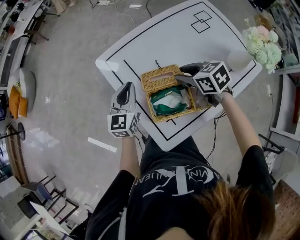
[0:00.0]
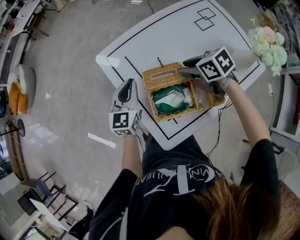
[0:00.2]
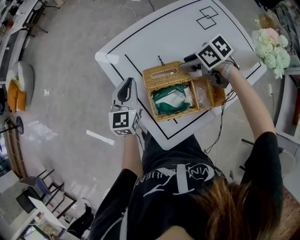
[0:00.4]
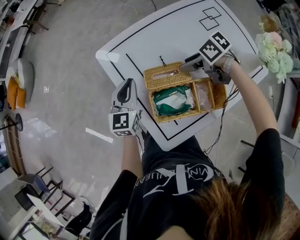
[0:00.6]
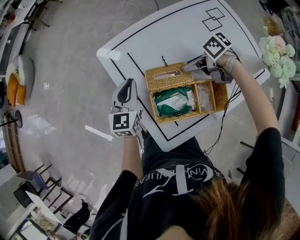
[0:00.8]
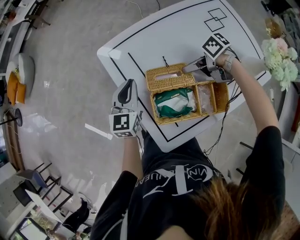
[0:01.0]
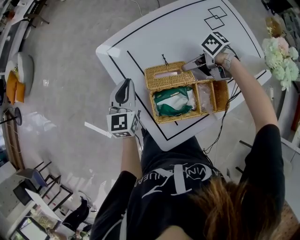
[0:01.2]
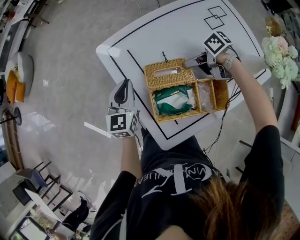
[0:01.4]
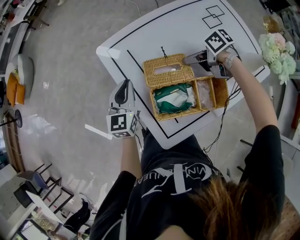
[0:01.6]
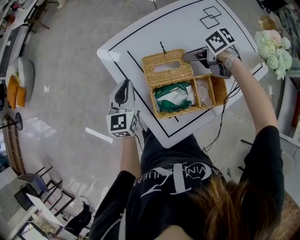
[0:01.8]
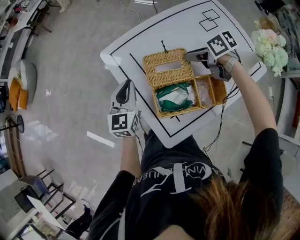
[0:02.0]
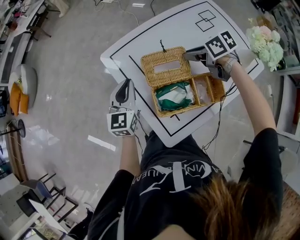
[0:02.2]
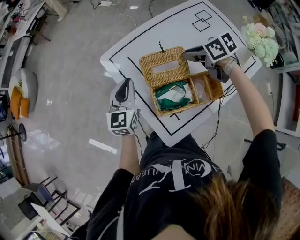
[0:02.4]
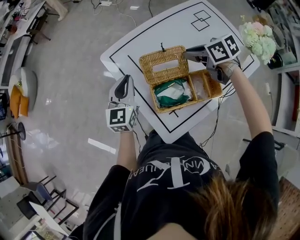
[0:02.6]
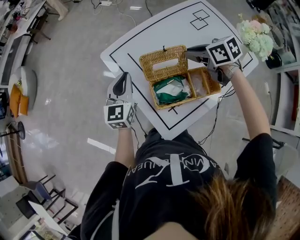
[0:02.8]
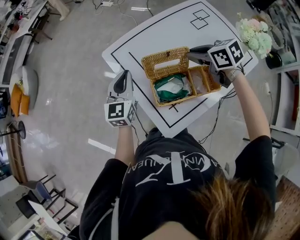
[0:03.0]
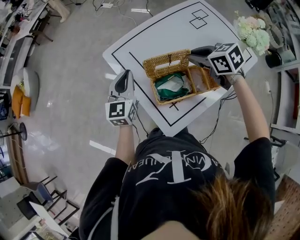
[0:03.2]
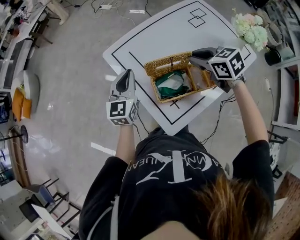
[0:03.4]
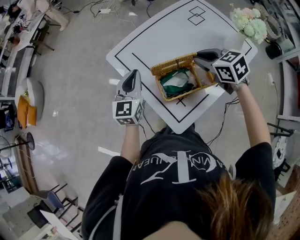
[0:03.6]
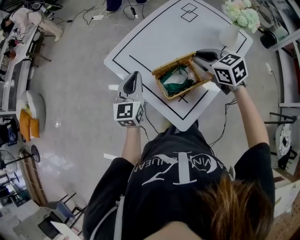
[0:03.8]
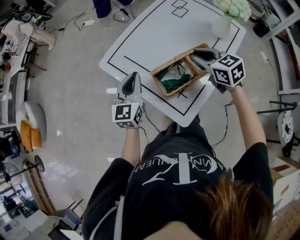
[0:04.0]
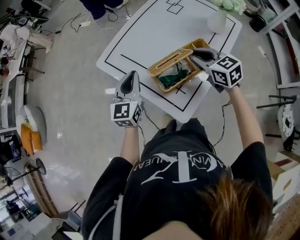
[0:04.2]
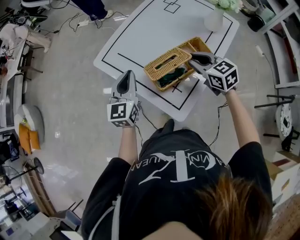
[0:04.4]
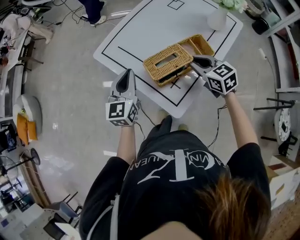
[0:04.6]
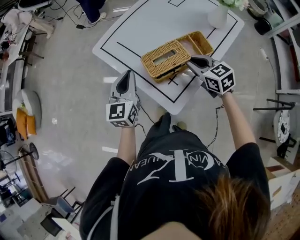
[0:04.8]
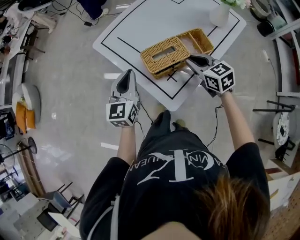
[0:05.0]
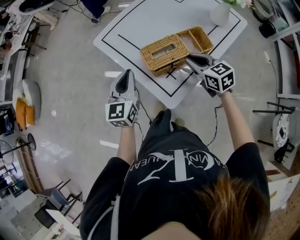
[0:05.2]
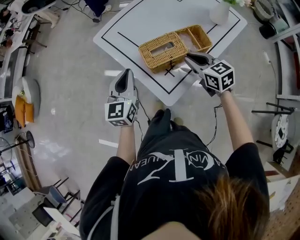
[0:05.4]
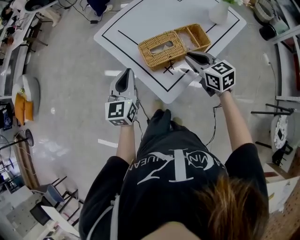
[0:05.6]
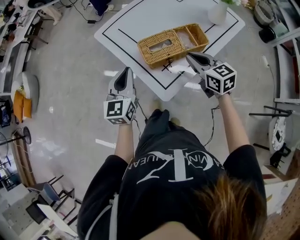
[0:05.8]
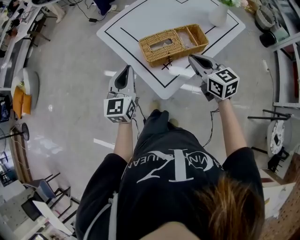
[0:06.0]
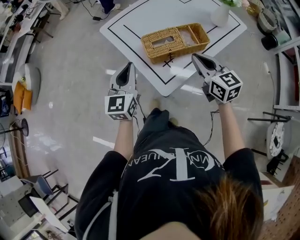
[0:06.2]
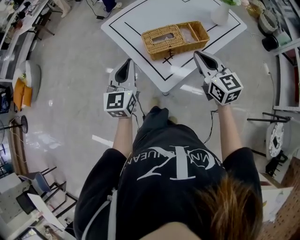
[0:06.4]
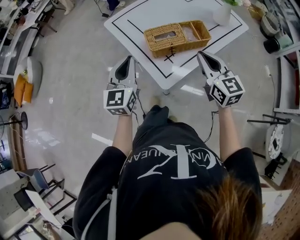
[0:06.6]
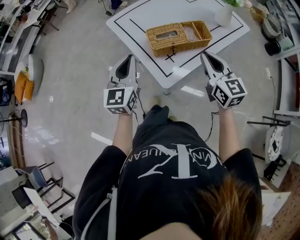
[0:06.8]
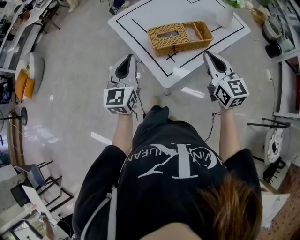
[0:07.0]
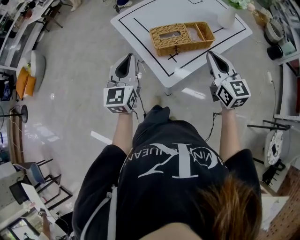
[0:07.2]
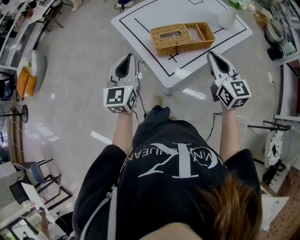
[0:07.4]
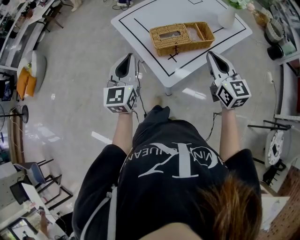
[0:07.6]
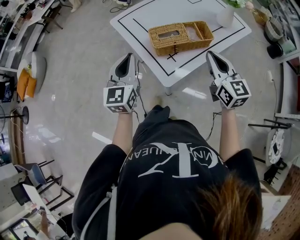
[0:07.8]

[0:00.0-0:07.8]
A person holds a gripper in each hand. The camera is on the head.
0:00.0 to 0:01.6: The right gripper is displaced downward by some 5 cm, changes its angle by approximately 40 degrees, and opens, then closes again.
0:01.6 to 0:03.2: The left gripper shifts roughly 10 cm upward; the right gripper heads upward and backward, covering about 15 cm, and turns by some 40 degrees.
0:03.2 to 0:04.6: The right gripper is displaced backward and downward by some 15 cm, and changes its angle by approximately 30 degrees, while the left gripper shifts approximately 5 cm backward.
0:04.6 to 0:06.2: The right gripper goes approximately 10 cm backward and upward. The left gripper shifts roughly 15 cm backward.
0:06.2 to 0:07.8: The left gripper ends up some 5 cm from where it was, while the right gripper ends up approximately 5 cm from where it was.

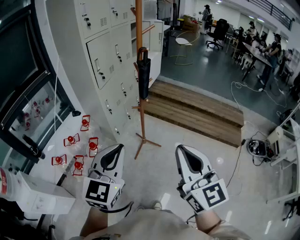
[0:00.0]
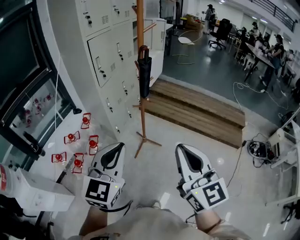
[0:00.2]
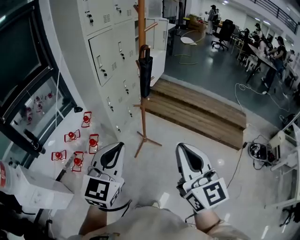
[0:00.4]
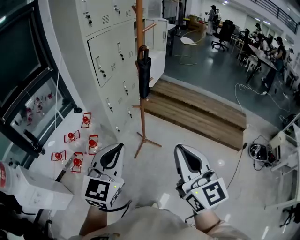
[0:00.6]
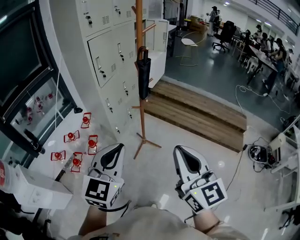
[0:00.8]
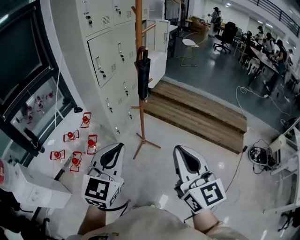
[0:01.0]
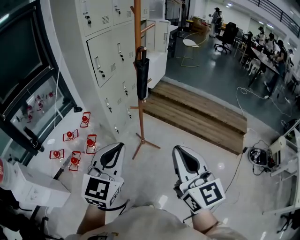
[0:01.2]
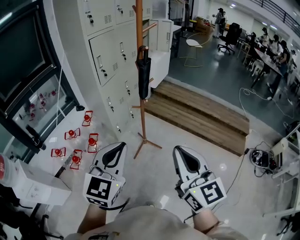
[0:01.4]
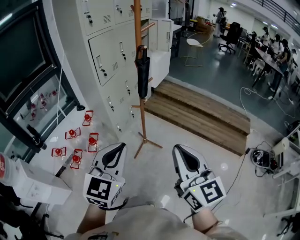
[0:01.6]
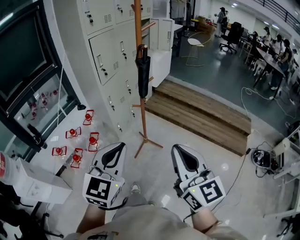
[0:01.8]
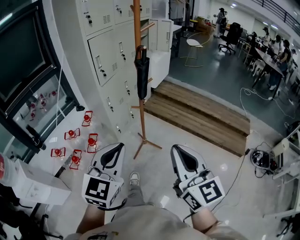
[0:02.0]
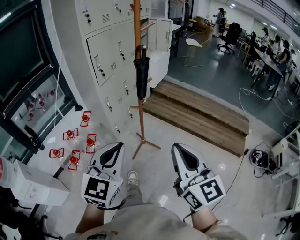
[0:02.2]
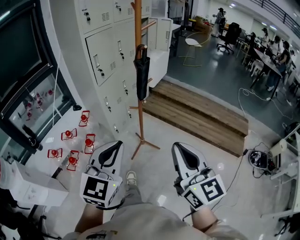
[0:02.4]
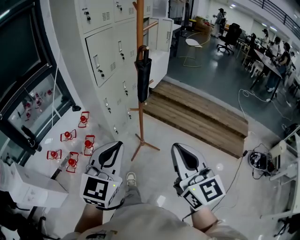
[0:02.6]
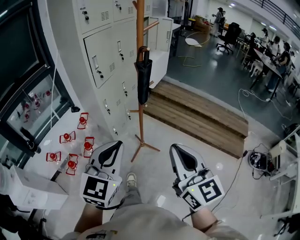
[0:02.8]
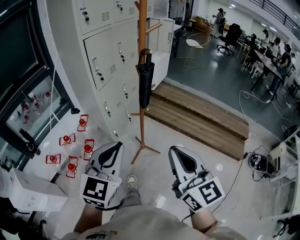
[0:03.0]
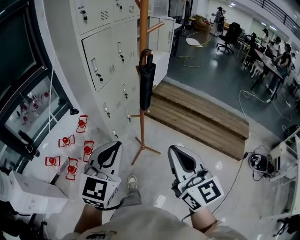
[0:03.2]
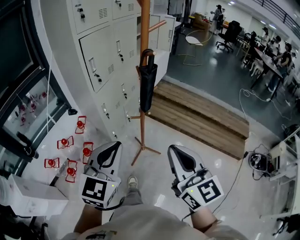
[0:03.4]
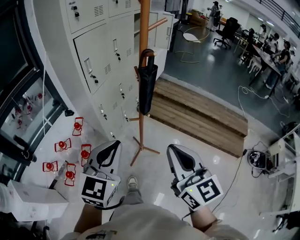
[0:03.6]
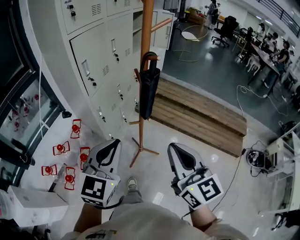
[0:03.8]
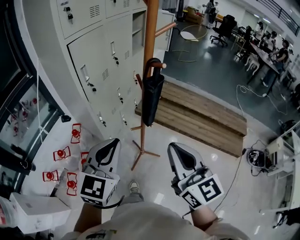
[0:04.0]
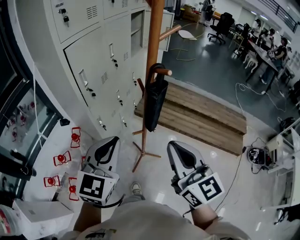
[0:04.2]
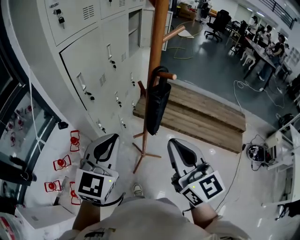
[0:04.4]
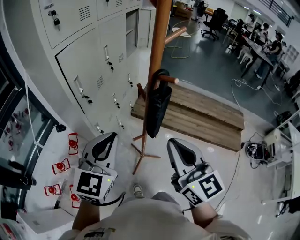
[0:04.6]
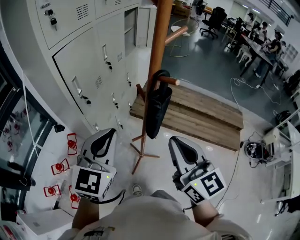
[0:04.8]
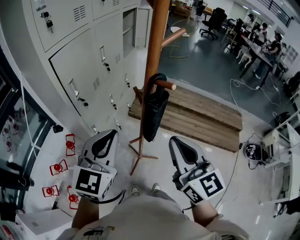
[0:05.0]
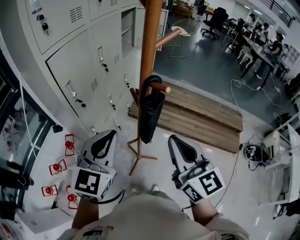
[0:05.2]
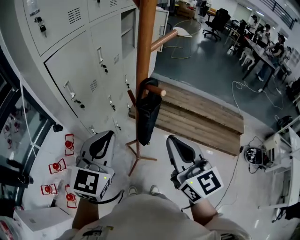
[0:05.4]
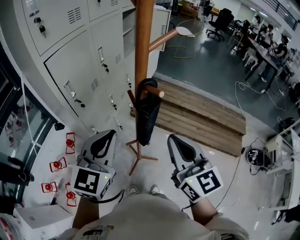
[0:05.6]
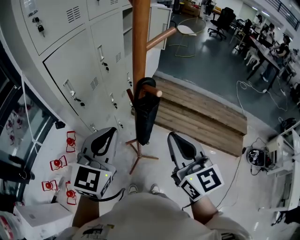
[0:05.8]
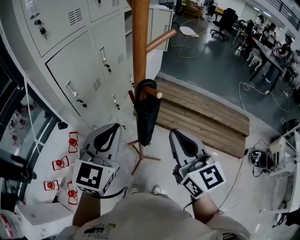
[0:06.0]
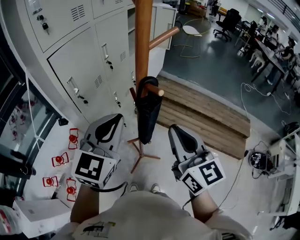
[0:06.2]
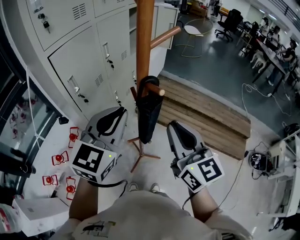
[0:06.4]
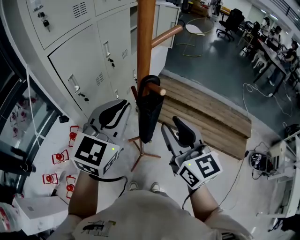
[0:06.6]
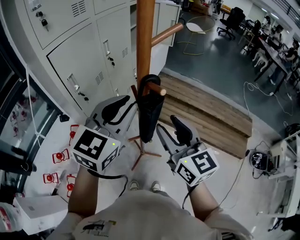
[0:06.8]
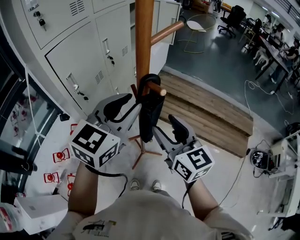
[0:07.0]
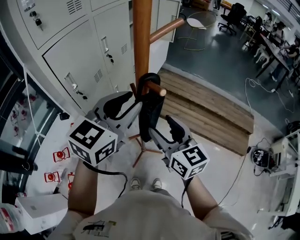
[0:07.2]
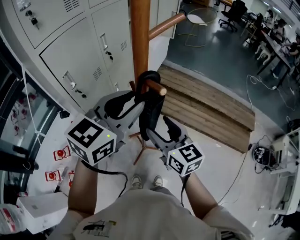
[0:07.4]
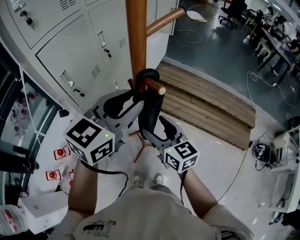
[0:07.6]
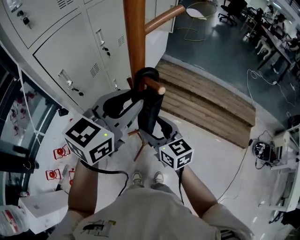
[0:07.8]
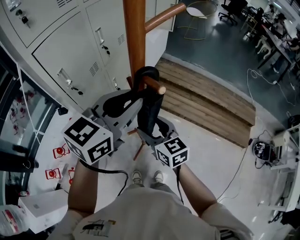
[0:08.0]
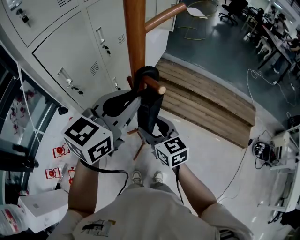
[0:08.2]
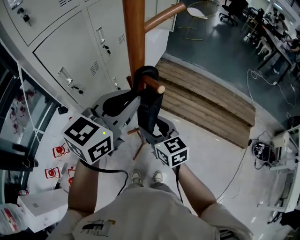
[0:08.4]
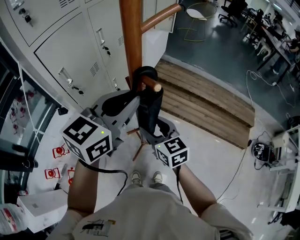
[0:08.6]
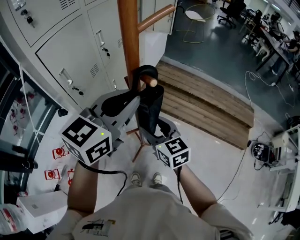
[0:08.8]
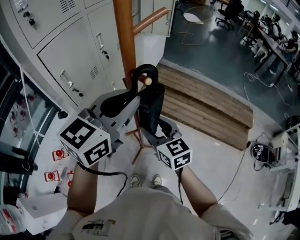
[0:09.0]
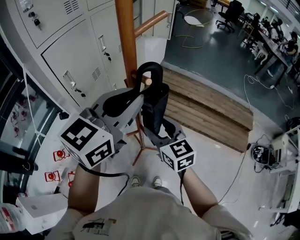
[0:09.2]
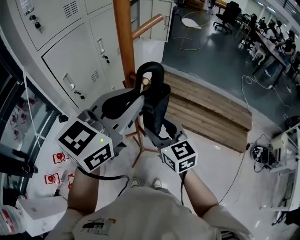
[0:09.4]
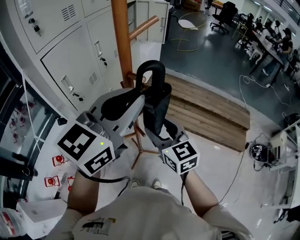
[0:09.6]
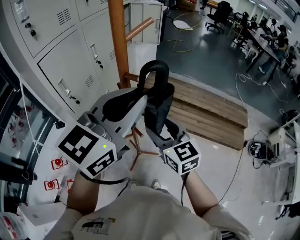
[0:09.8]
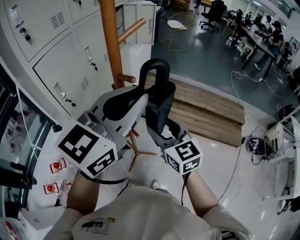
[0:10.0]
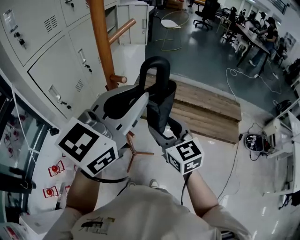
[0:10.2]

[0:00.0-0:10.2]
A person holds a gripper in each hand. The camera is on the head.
0:00.0 to 0:01.4: The grippers both shift to the right by approximately 5 cm.
0:01.4 to 0:03.0: Both grippers move forward, approximately 10 cm.
0:03.0 to 0:04.4: Both grippers travel together forward, roughly 25 cm.
0:04.4 to 0:05.8: Both grippers travel together forward and to the right, approximately 10 cm.
0:05.8 to 0:07.2: The right gripper moves downward and forward, about 10 cm, and opens, while the left gripper shifts roughly 10 cm forward and to the right, and opens its fingers.
0:07.2 to 0:08.8: The right gripper goes roughly 10 cm downward.
0:08.8 to 0:10.2: The left gripper heads upward, to the right and backward, covering some 15 cm; the right gripper travels to the right and upward by approximately 15 cm.

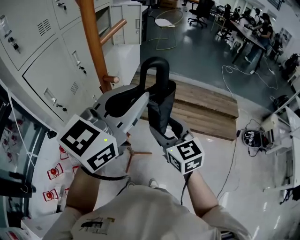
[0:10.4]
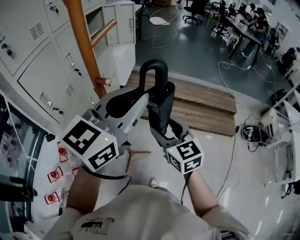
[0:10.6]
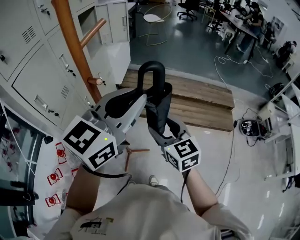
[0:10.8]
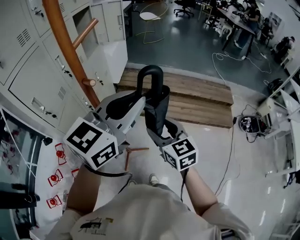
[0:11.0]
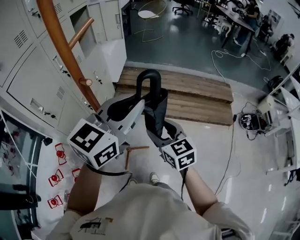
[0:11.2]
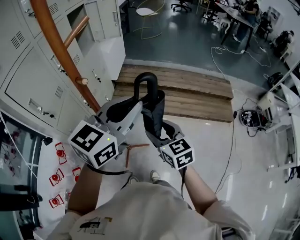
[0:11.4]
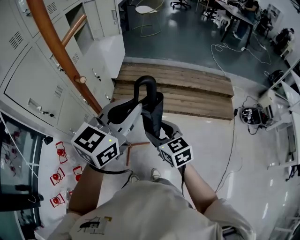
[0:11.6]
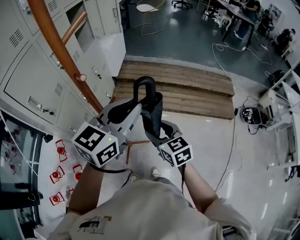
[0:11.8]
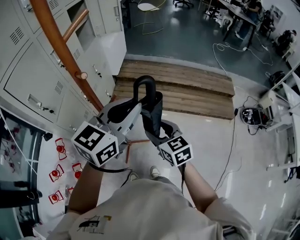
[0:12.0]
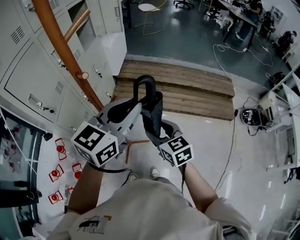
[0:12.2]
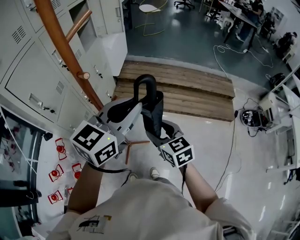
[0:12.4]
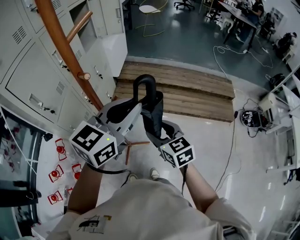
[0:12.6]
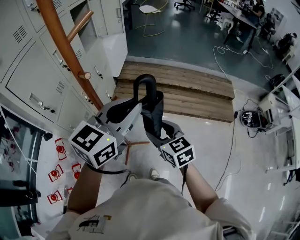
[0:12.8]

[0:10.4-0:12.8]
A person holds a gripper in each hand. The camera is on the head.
0:10.4 to 0:11.6: Both grippers travel together downward, about 10 cm.
0:11.6 to 0:12.8: Both grippers stay about where they are.

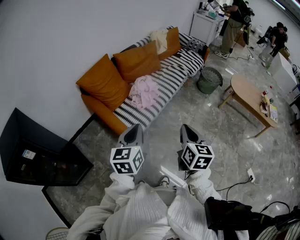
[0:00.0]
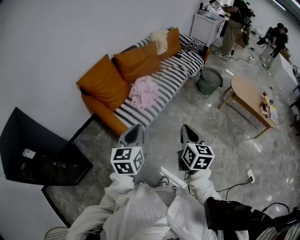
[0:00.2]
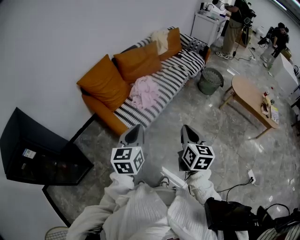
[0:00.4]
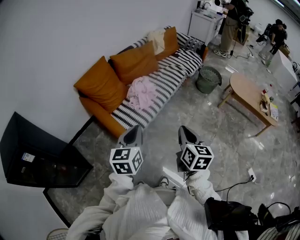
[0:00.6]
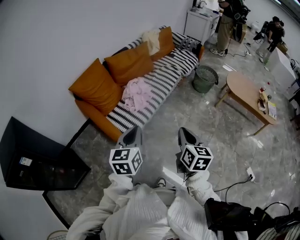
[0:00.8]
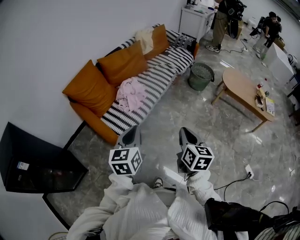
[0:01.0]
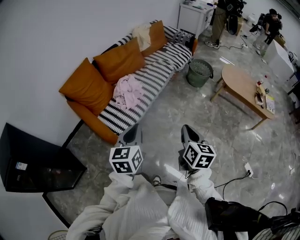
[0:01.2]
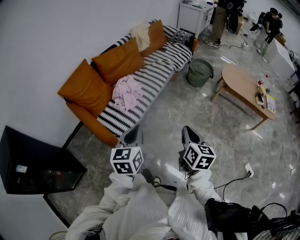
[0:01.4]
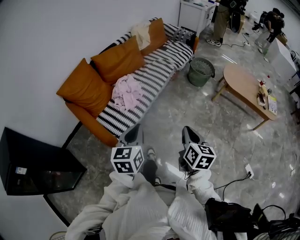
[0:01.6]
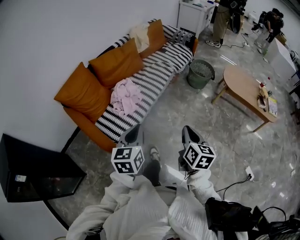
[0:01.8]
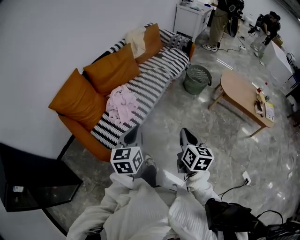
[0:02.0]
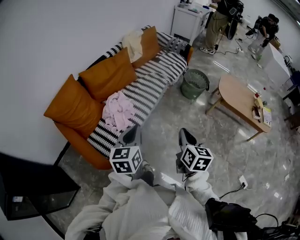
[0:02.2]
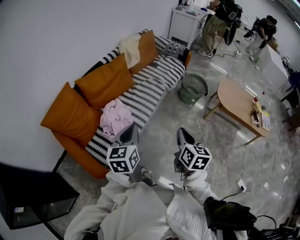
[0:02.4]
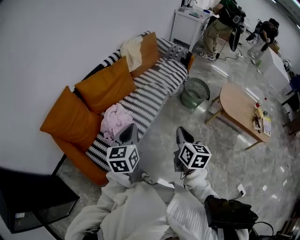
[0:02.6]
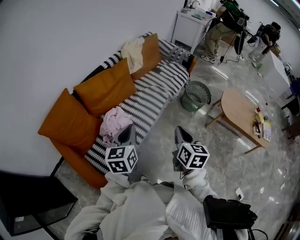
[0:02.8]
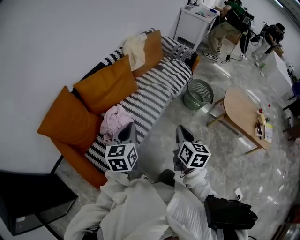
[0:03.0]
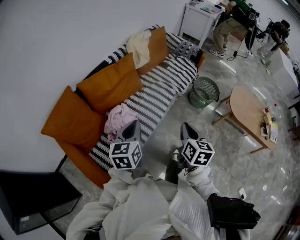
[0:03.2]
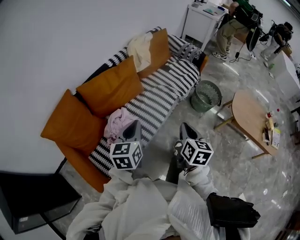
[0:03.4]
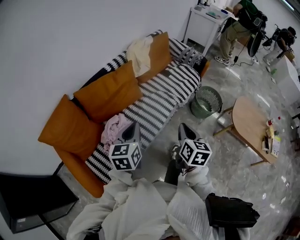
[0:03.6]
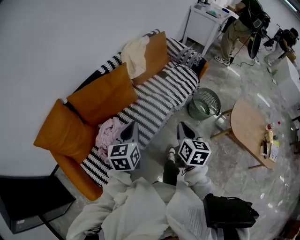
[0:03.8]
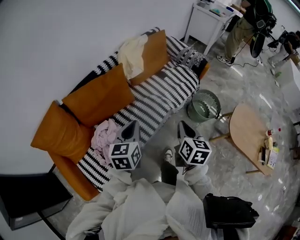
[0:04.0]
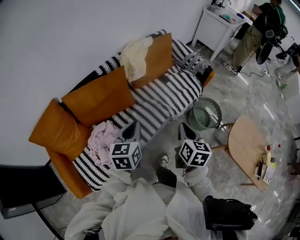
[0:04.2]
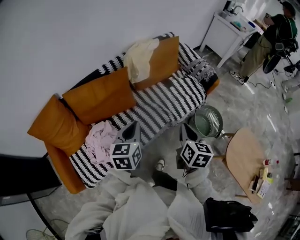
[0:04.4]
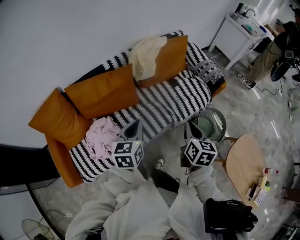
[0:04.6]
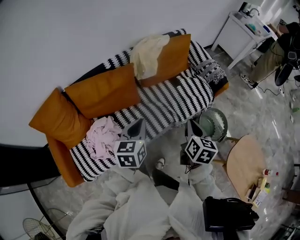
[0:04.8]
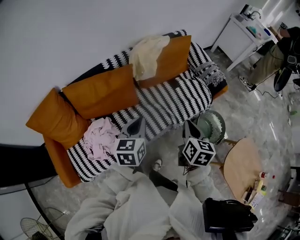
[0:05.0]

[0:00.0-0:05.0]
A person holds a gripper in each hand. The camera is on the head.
0:00.0 to 0:01.6: Both grippers travel together to the right and forward, some 20 cm.
0:01.6 to 0:03.4: The pair of grippers is taken forward, some 40 cm.
0:03.4 to 0:05.0: Both grippers move forward and to the right, about 35 cm.
